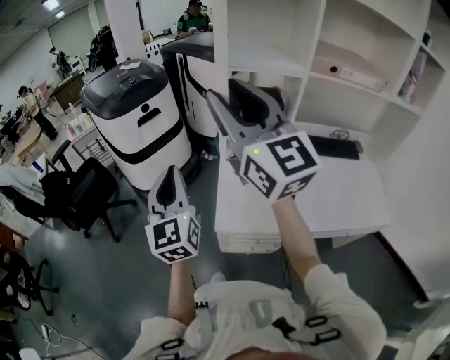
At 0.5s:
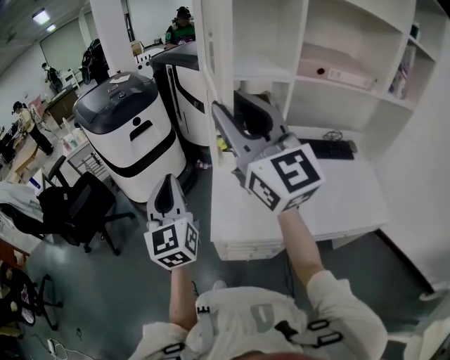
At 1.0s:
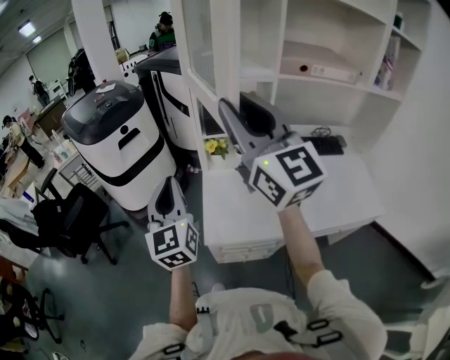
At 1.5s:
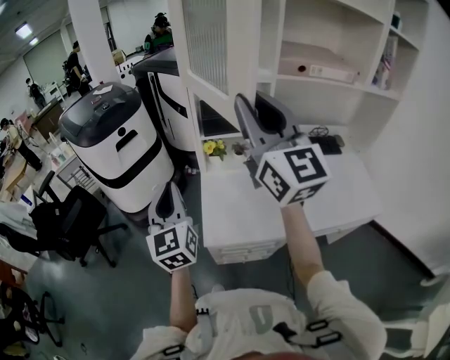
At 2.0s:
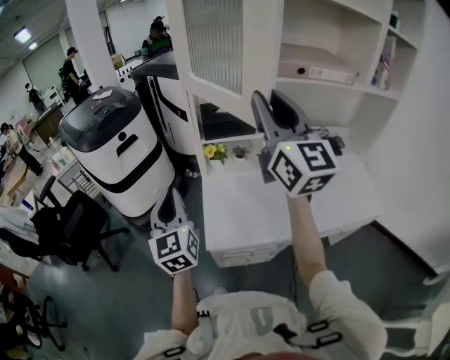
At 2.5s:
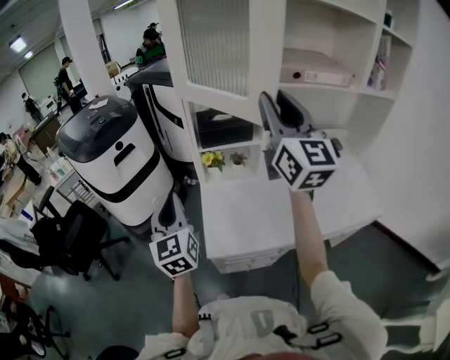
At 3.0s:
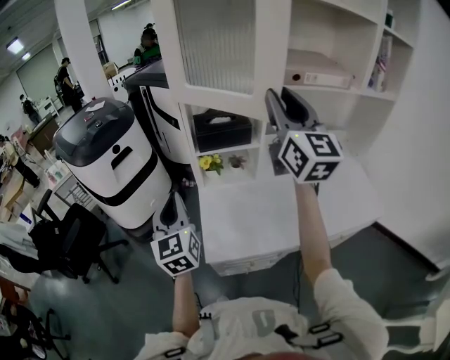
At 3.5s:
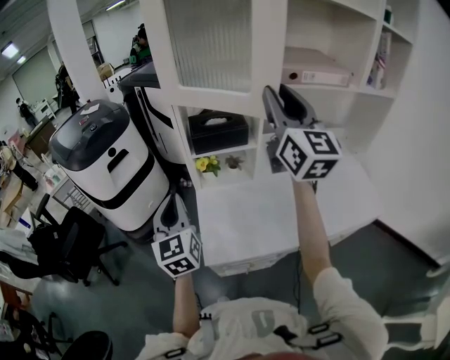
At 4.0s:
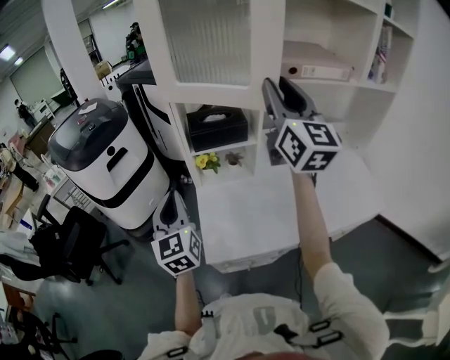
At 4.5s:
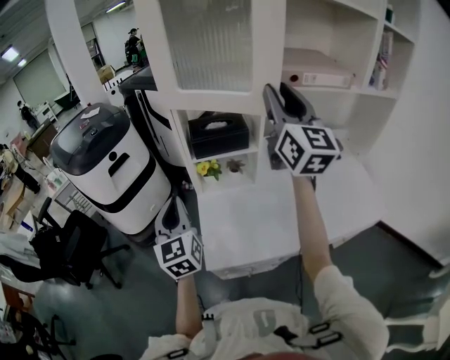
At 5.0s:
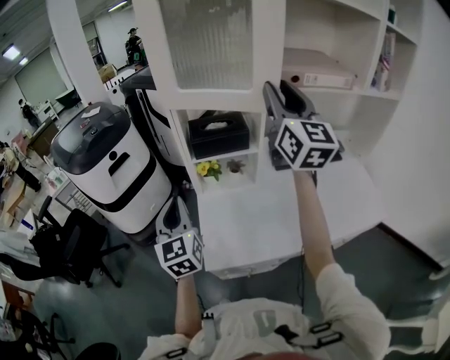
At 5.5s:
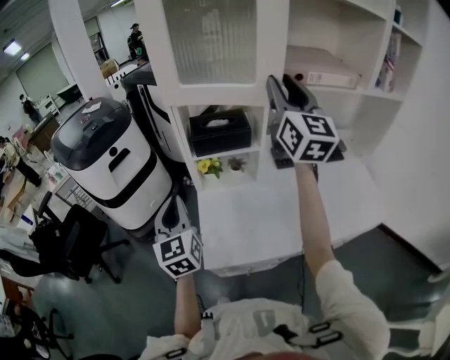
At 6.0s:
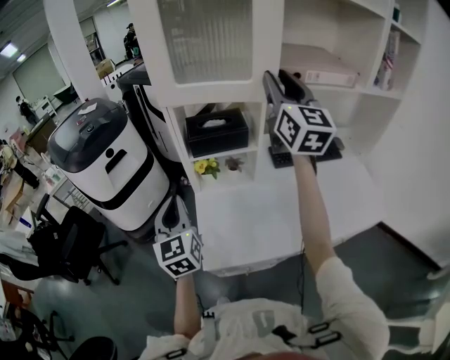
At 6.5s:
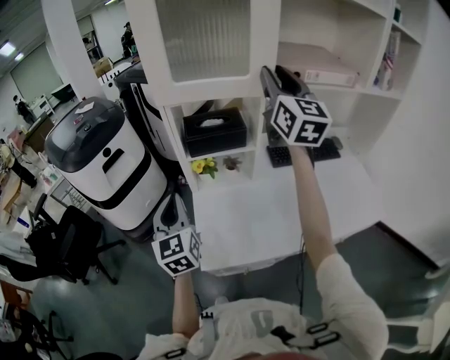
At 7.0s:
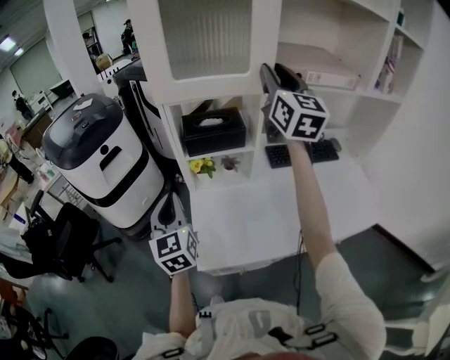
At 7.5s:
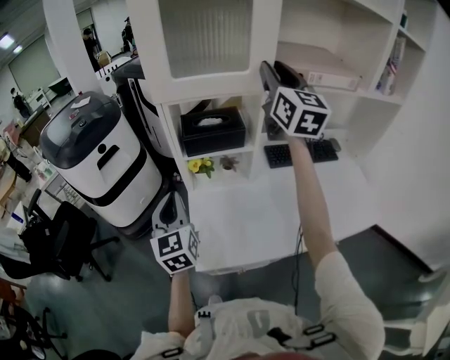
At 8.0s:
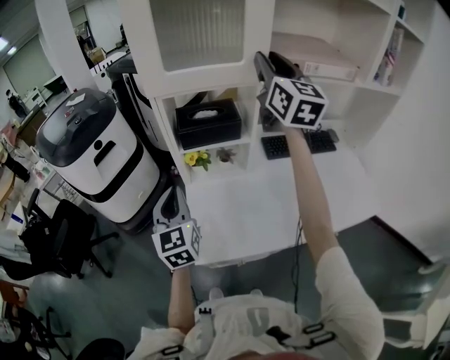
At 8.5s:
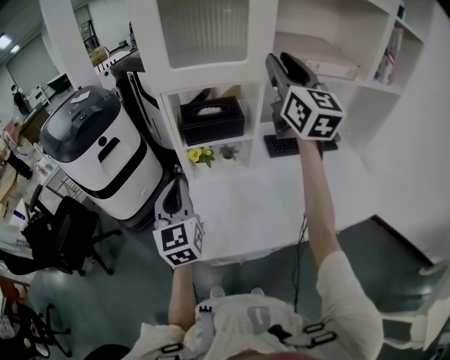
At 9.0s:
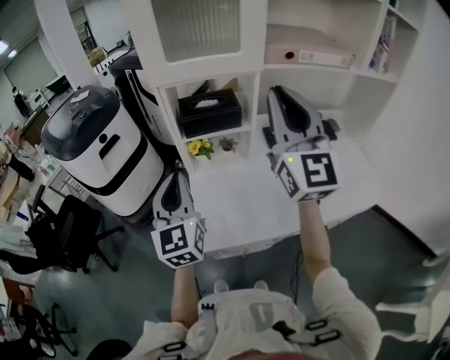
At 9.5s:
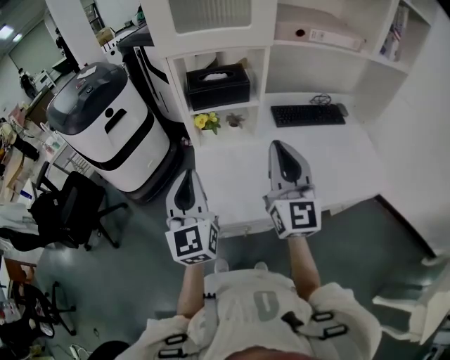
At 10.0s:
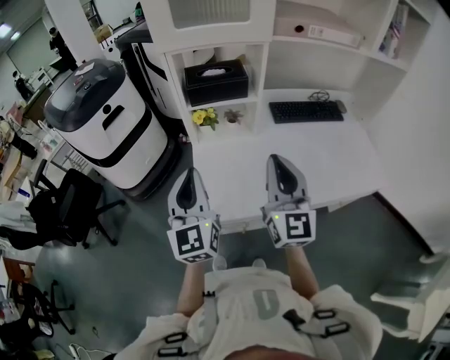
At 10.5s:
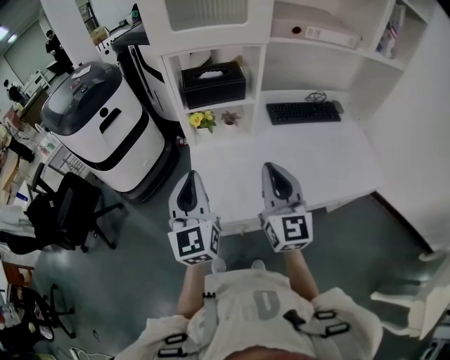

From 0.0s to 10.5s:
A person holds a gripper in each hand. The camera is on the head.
From 0.0s to 2.0s: The right gripper travels to the right by about 15 cm, while the left gripper travels to the right by roughly 5 cm.
From 2.0s to 4.0s: The right gripper goes approximately 10 cm to the right and forward, while the left gripper is displaced forward by roughly 5 cm.
From 4.0s to 6.5s: The right gripper goes some 10 cm forward.
From 6.5s to 8.5s: The grippers make only small movements.
From 8.5s to 10.5s: The right gripper moves downward and backward, about 35 cm, and closes up; the left gripper shifts roughly 10 cm backward.

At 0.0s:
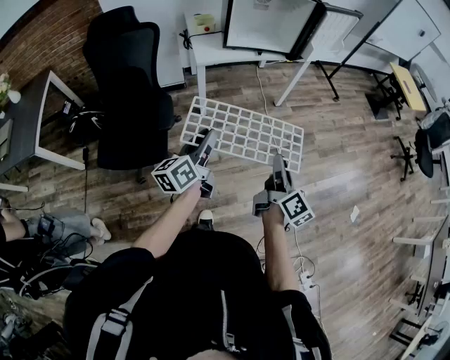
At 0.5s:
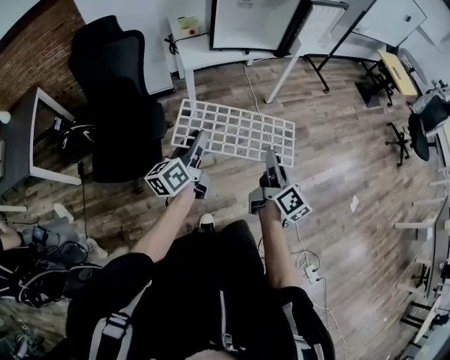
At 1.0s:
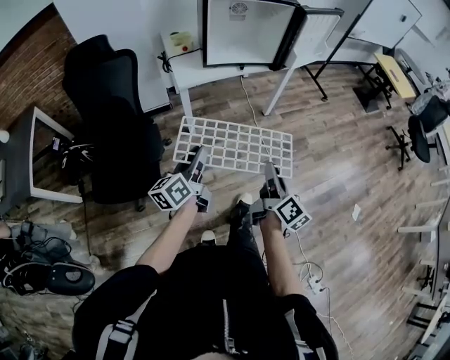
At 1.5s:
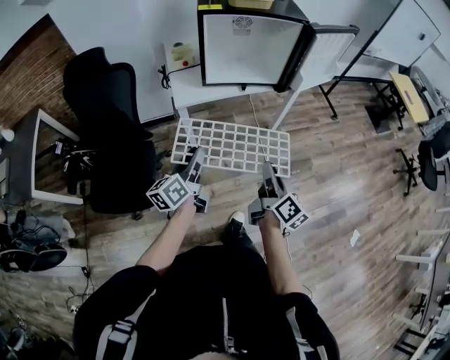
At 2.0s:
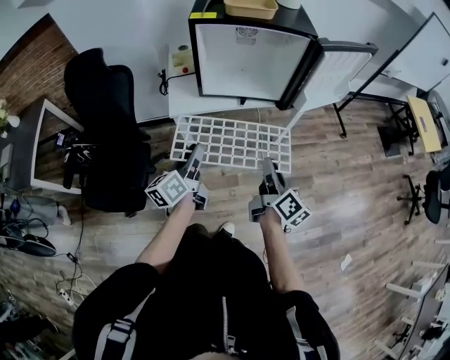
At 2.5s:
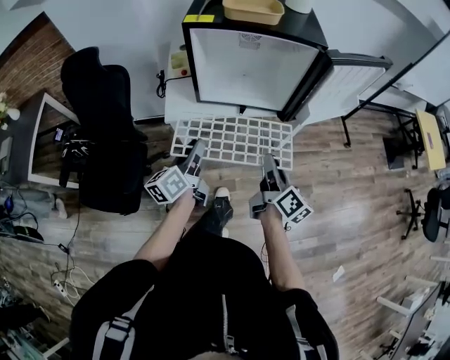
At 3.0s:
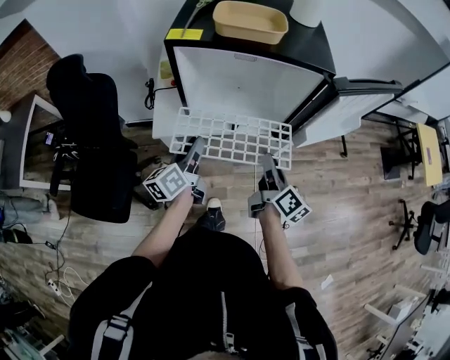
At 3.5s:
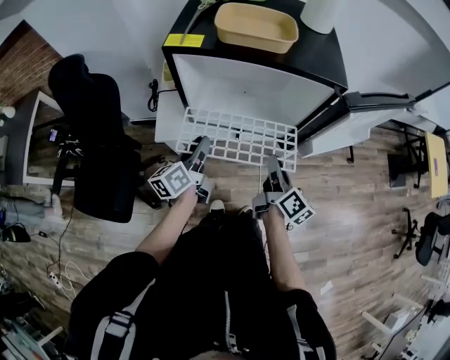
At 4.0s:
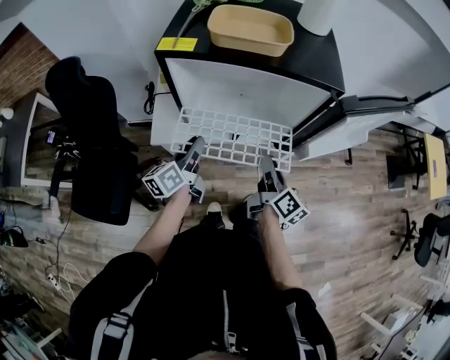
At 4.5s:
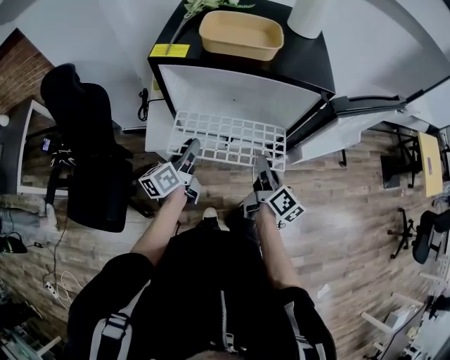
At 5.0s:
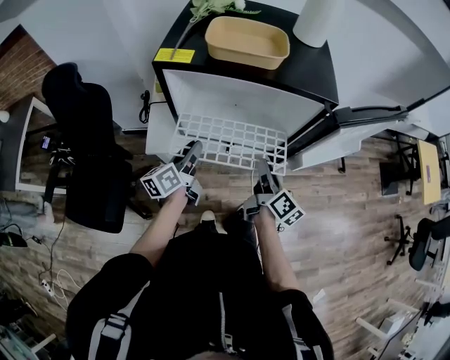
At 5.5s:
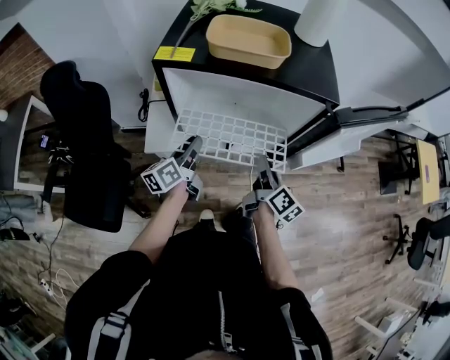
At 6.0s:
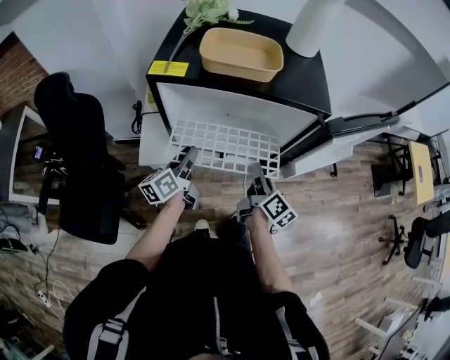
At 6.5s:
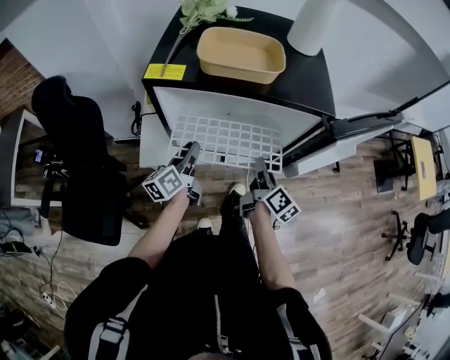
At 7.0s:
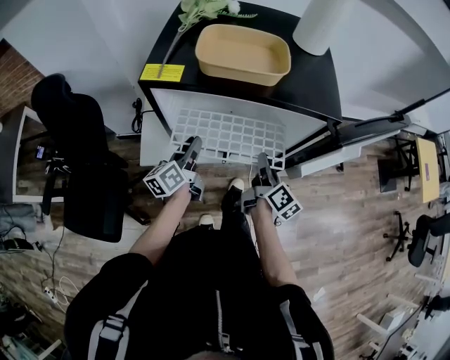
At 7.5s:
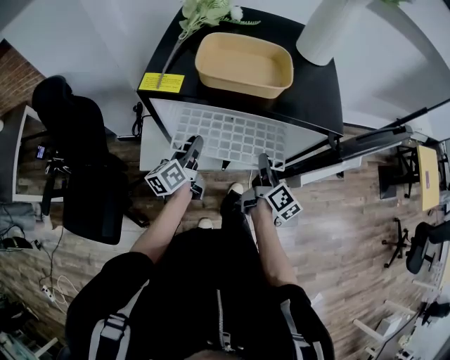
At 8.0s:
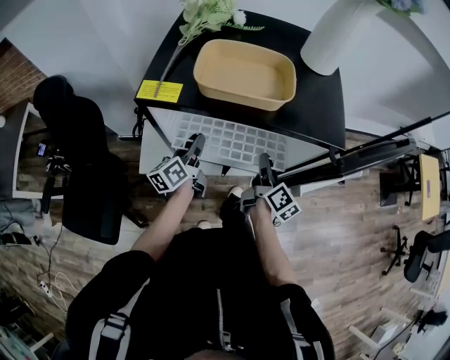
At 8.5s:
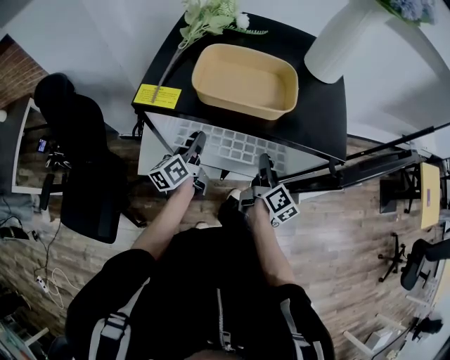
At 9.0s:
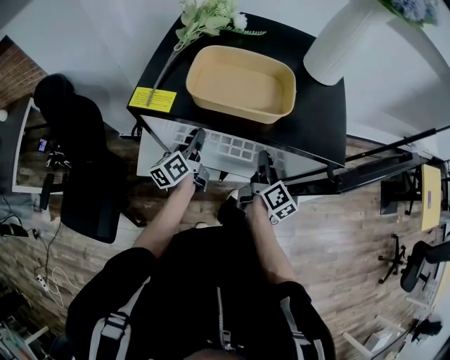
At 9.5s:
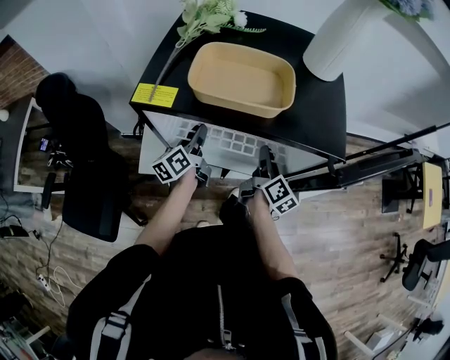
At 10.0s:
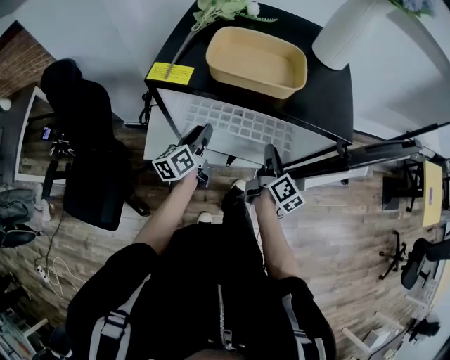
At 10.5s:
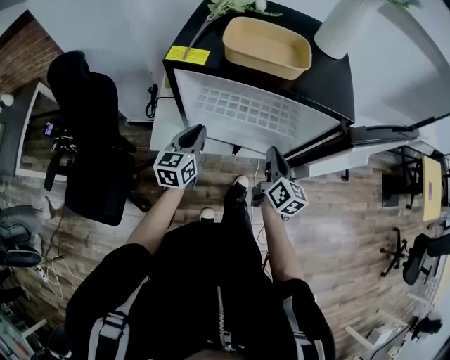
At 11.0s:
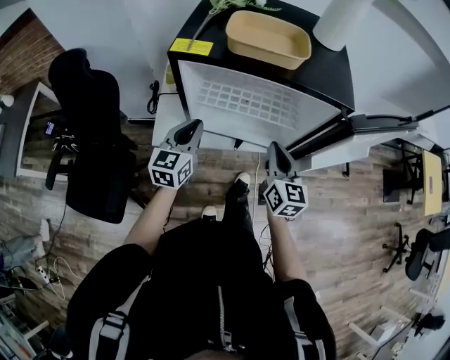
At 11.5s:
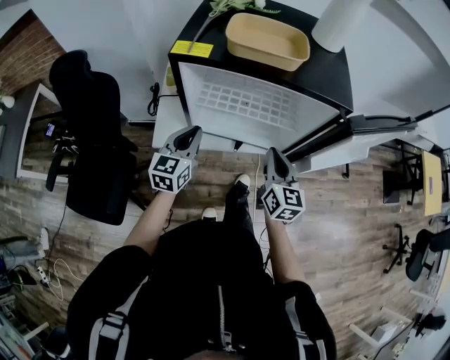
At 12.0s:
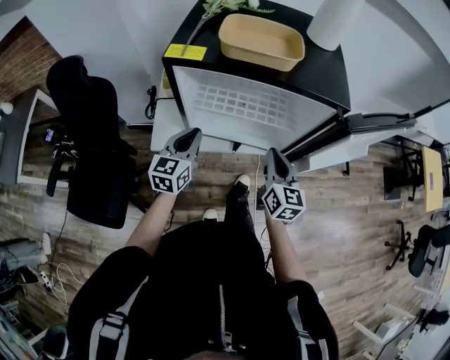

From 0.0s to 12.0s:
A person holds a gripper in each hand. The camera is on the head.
From 0.0s to 2.0s: The grippers both shift forward by approximately 30 cm.
From 2.0s to 4.0s: Both grippers travel together forward, about 25 cm.
From 4.0s to 6.0s: The grippers make only small movements.
From 6.0s to 8.0s: The grippers both shift forward by some 10 cm.
From 8.0s to 10.0s: The grippers stay close to where they were, moving slightly.
From 10.0s to 12.0s: The two grippers go approximately 10 cm backward. The left gripper swivels approximately 40 degrees, and closes its fingers. Meanwhile the right gripper rolls counterclockwise, seen from behind, by some 40 degrees, and closes up.

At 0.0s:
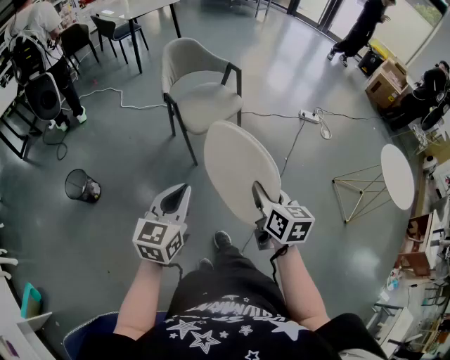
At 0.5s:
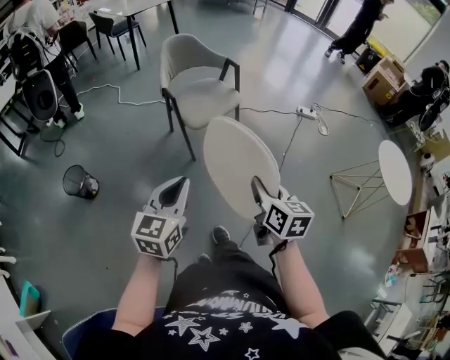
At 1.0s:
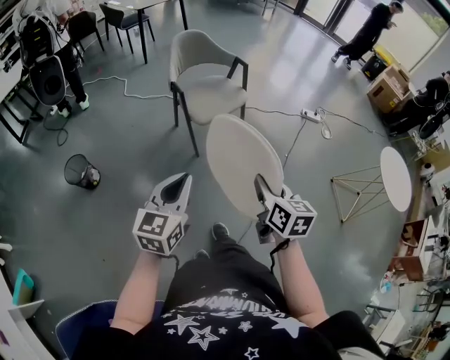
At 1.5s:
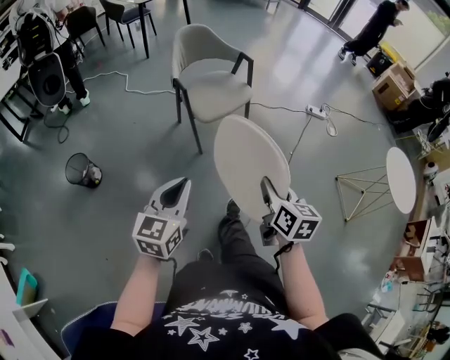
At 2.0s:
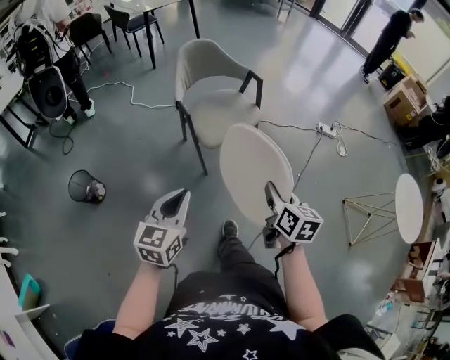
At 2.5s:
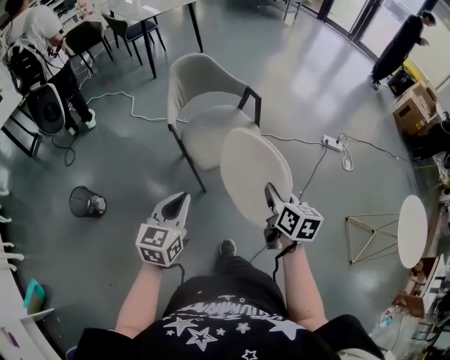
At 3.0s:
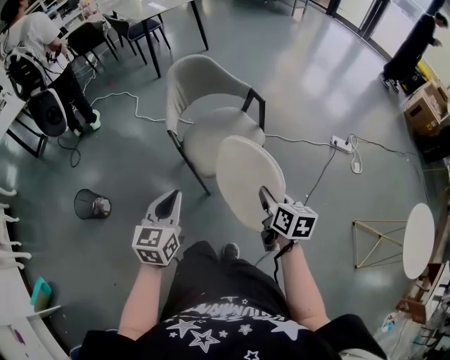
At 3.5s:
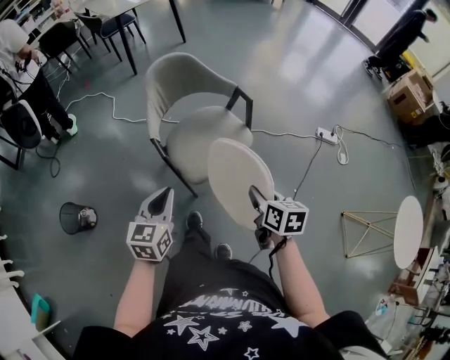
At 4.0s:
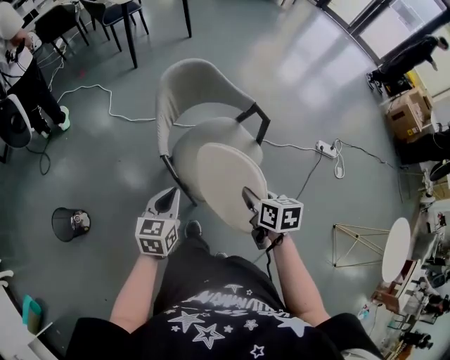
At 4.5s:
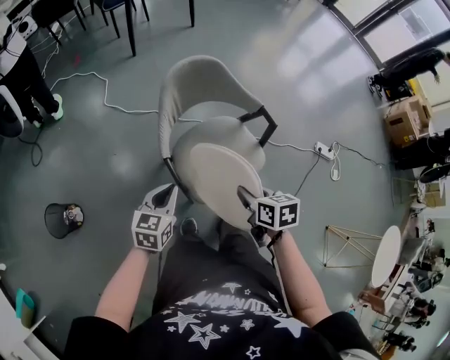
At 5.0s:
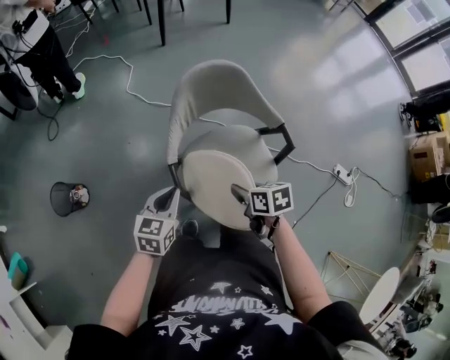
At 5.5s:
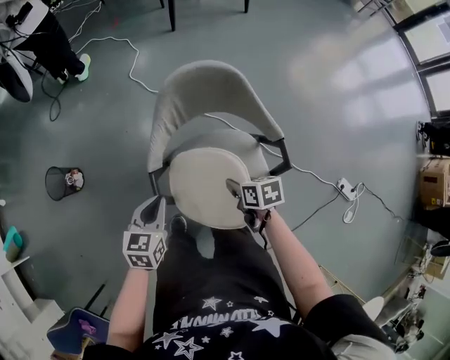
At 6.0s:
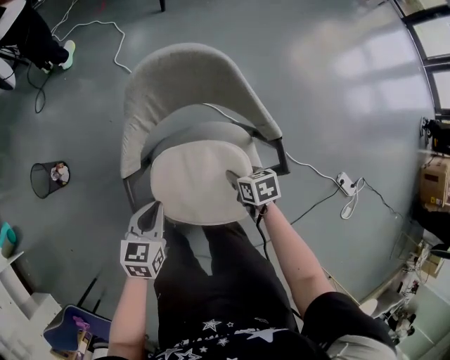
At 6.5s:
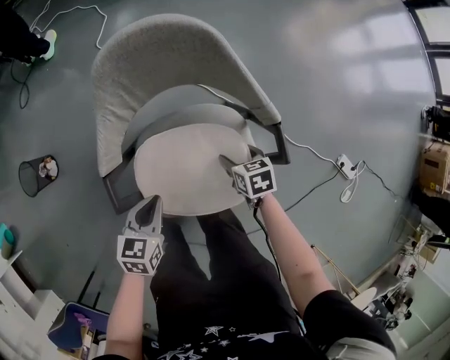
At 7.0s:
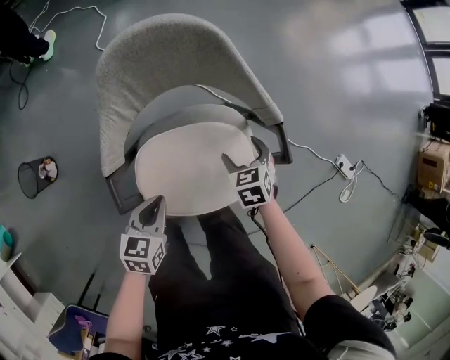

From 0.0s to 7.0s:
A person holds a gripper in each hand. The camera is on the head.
From 0.0s to 2.0s: The grippers both shift forward by some 10 cm.
From 2.0s to 3.5s: The two grippers go roughly 25 cm forward.
From 3.5s to 5.0s: The right gripper changes place by about 25 cm, and changes its angle by roughly 40 degrees. The left gripper ends up about 20 cm from where it was.
From 5.0s to 7.0s: The left gripper moves downward, roughly 15 cm; the right gripper ends up about 25 cm from where it was, swivels approximately 40 degrees, and opens.
